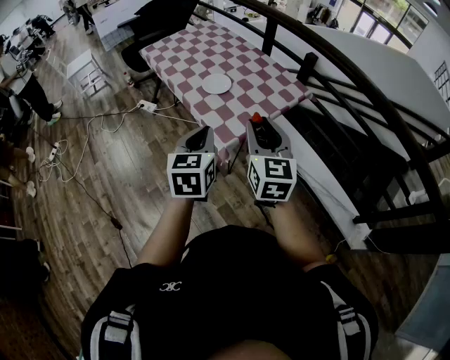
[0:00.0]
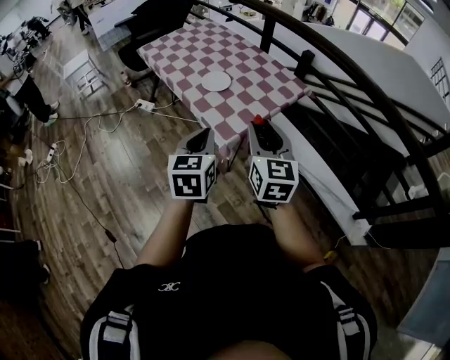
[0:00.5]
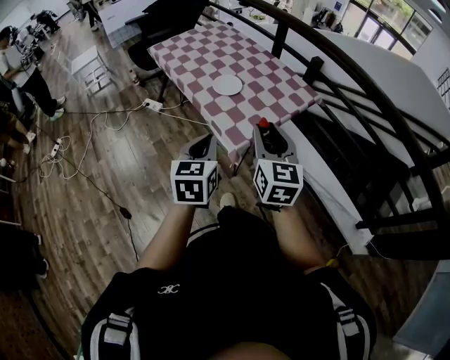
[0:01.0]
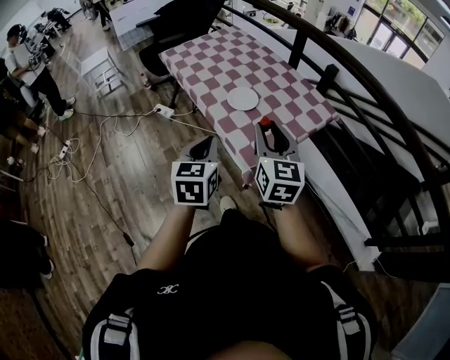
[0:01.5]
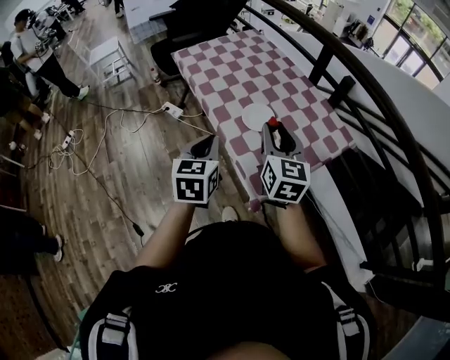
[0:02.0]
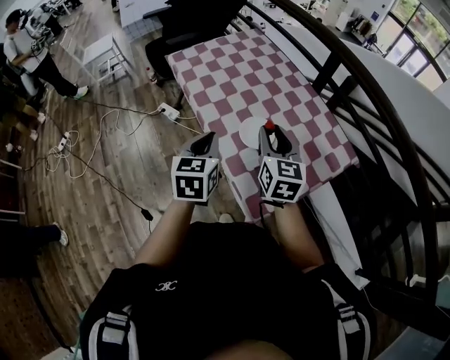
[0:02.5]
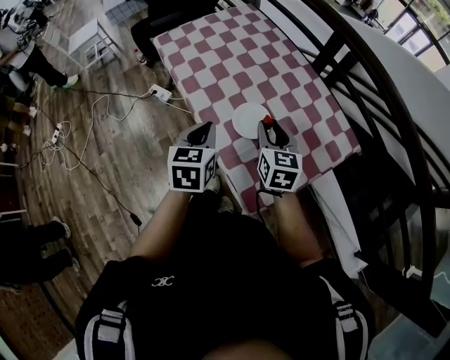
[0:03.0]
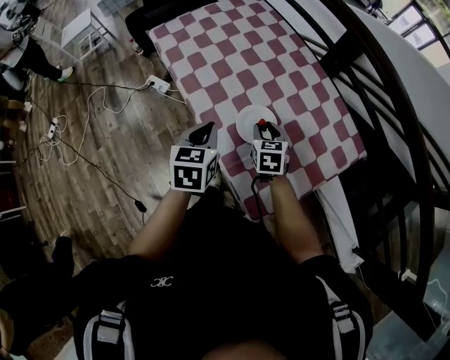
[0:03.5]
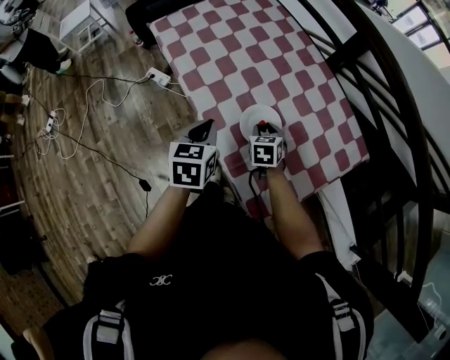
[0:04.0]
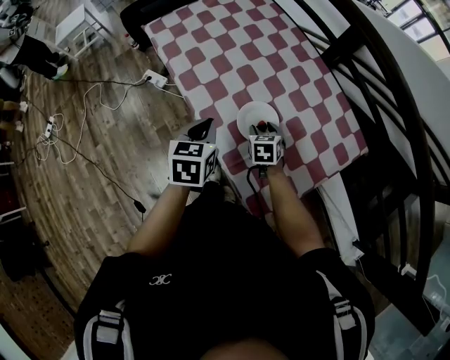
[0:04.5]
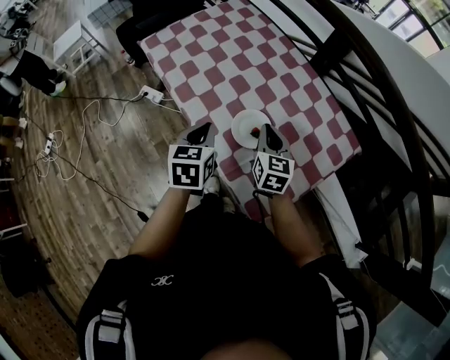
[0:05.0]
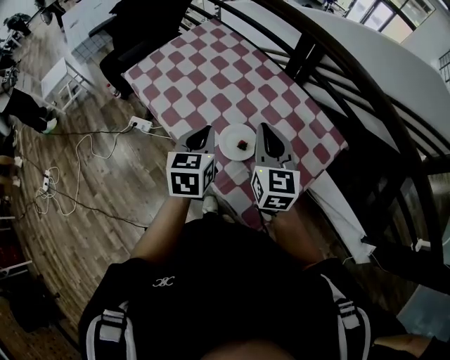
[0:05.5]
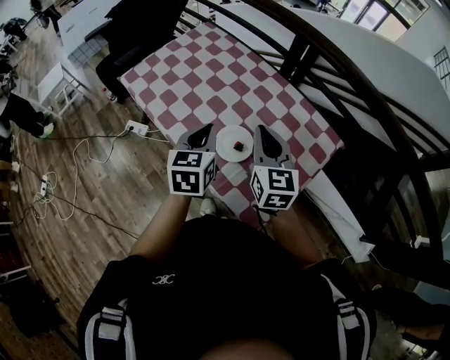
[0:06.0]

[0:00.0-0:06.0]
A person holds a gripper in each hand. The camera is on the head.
0:00.0 to 0:02.0: Both grippers travel together forward and to the left, approximately 25 cm.
0:02.0 to 0:04.0: The right gripper is displaced downward and forward by about 35 cm, and tips its fingers downward by some 40 degrees. The left gripper heads forward and downward, covering roughly 25 cm.
0:04.0 to 0:06.0: The left gripper goes some 10 cm upward and to the right. Meanwhile the right gripper heads upward, covering approximately 25 cm, tilts its fingers approximately 40 degrees upward, and closes up.

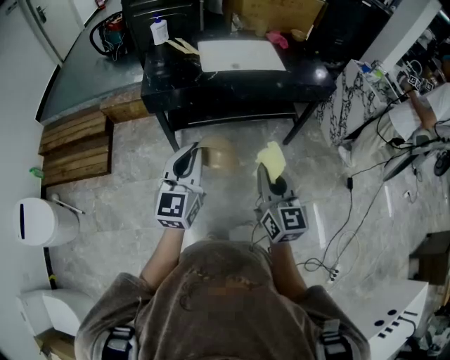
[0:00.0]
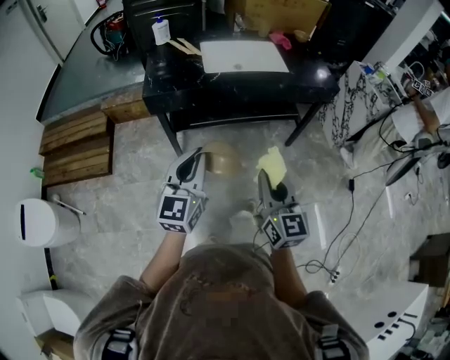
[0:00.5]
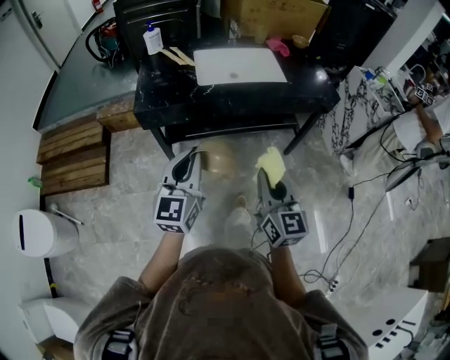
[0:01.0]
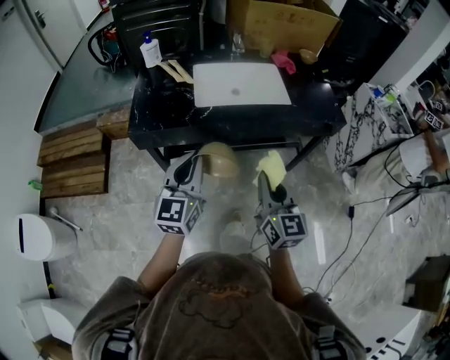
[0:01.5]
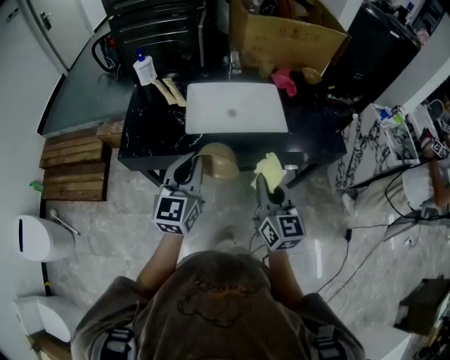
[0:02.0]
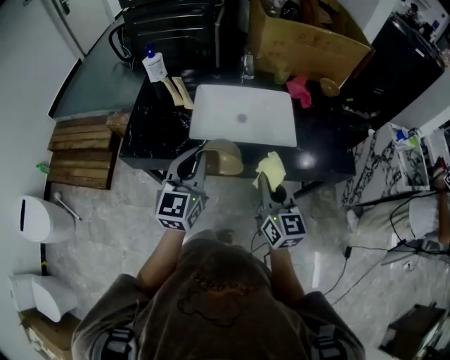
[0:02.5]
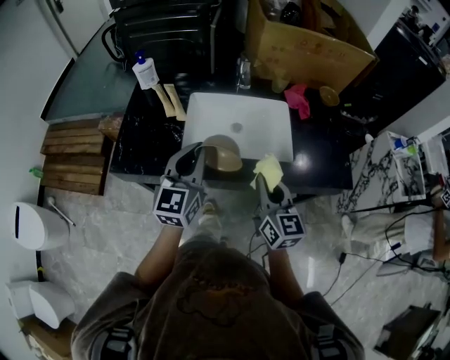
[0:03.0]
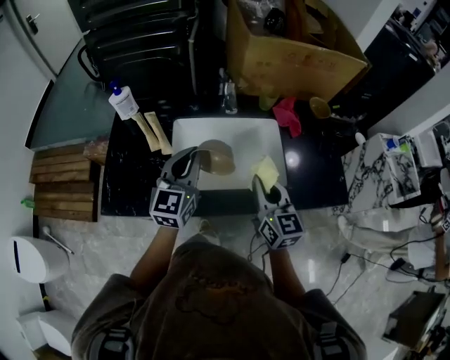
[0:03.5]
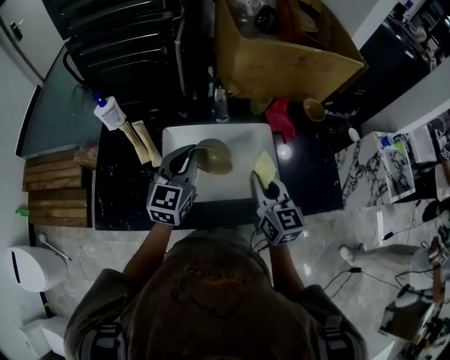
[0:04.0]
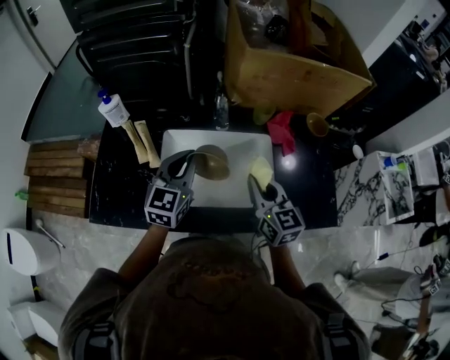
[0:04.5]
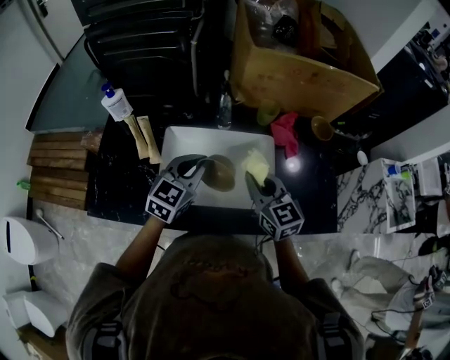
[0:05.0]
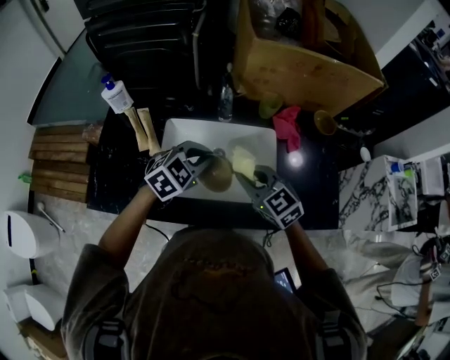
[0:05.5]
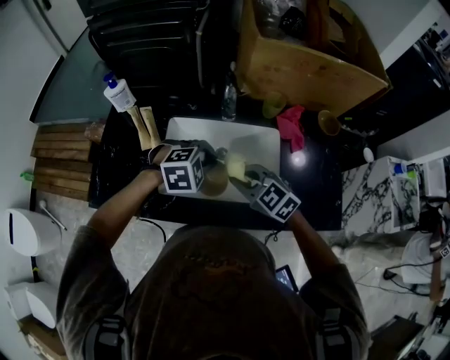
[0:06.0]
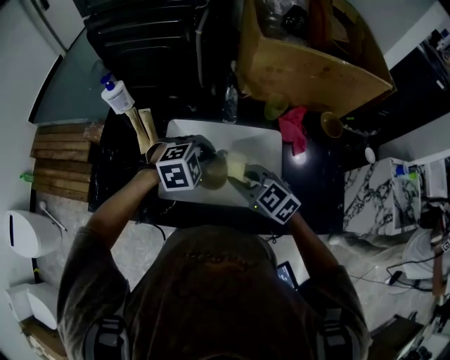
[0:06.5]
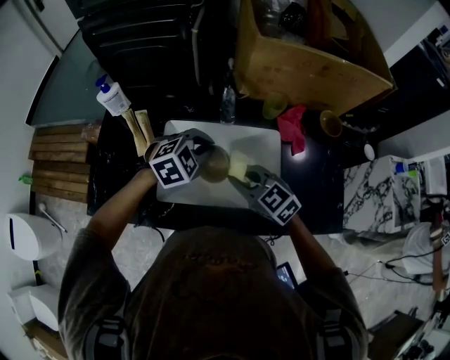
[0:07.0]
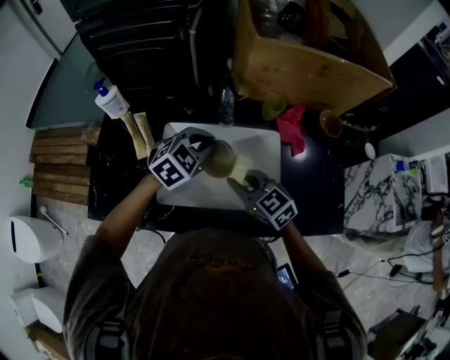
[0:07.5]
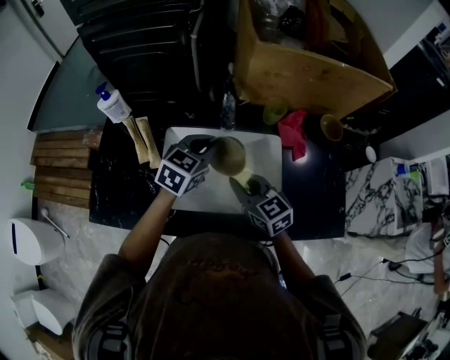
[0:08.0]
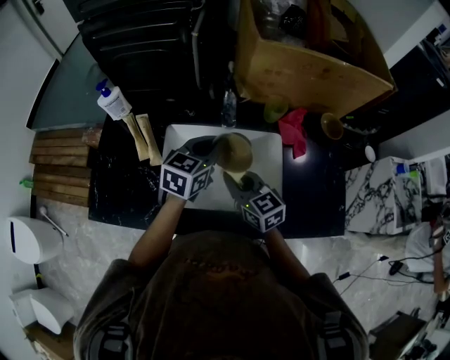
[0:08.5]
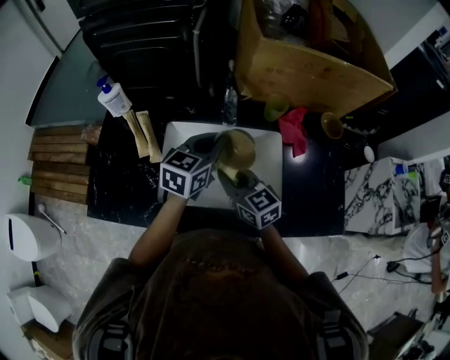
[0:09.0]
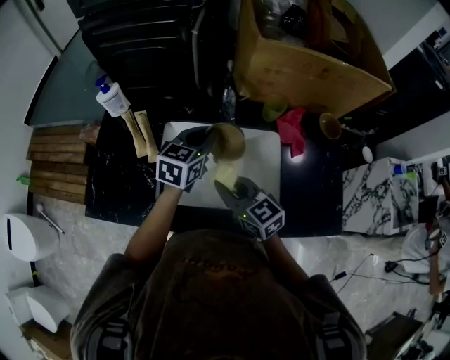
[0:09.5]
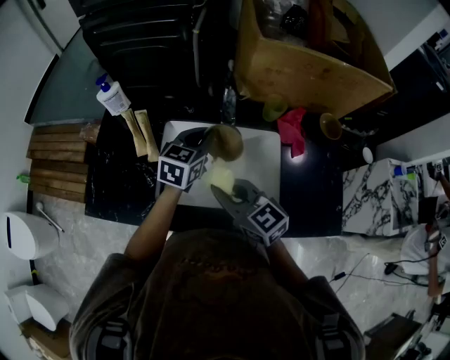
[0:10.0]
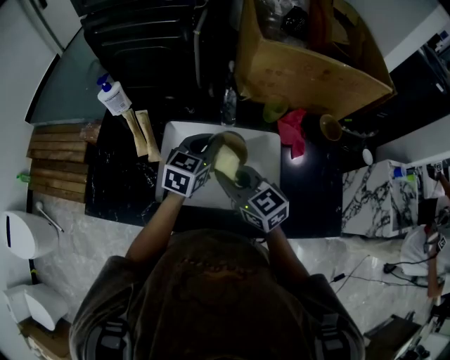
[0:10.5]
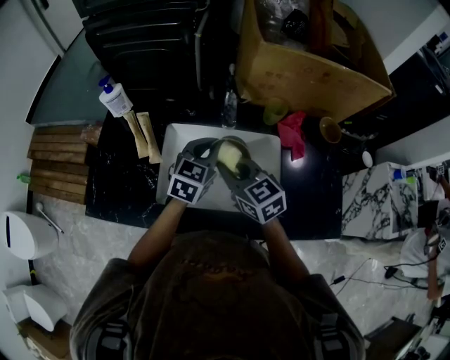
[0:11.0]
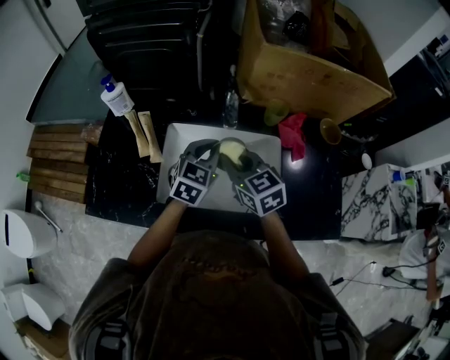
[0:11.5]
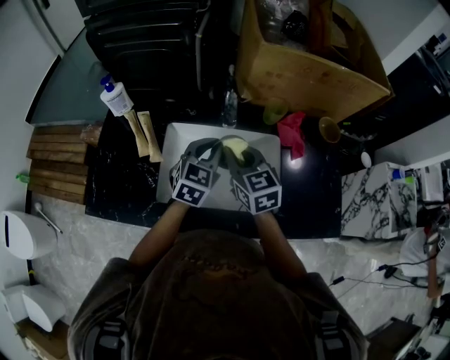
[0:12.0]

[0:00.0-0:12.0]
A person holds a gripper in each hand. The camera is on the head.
0:00.0 to 0:02.0: The two grippers go some 30 cm forward.
0:02.0 to 0:04.0: Both grippers travel together forward, about 30 cm.
0:04.0 to 0:06.0: The right gripper is displaced downward and to the left by approximately 10 cm, and swivels about 60 degrees. Meanwhile the left gripper moves downward and to the right, approximately 10 cm, and angles its fingers downward, by some 50 degrees.
0:06.0 to 0:08.0: The right gripper swivels some 30 degrees, while the left gripper heads forward, covering roughly 10 cm, and changes its angle by roughly 50 degrees.
0:08.0 to 0:10.0: The right gripper heads to the left and upward, covering some 5 cm.
0:10.0 to 0:12.0: The right gripper travels forward by approximately 10 cm, and turns by approximately 20 degrees.

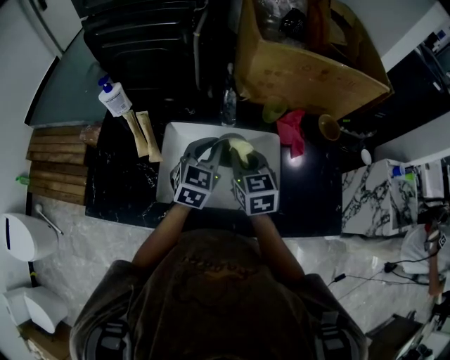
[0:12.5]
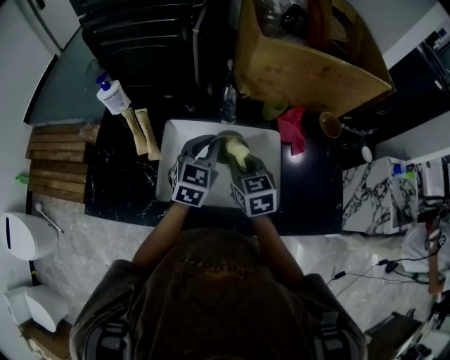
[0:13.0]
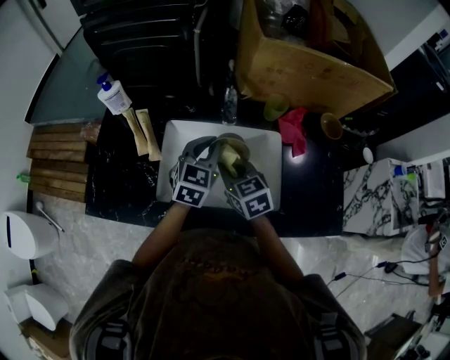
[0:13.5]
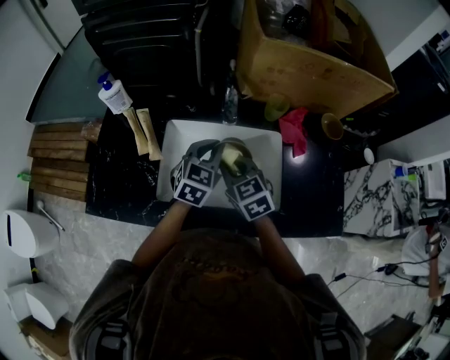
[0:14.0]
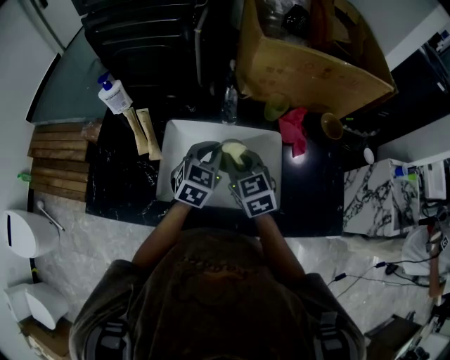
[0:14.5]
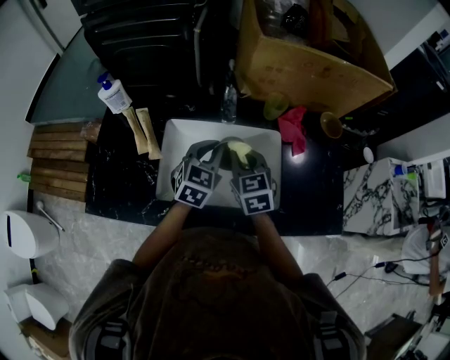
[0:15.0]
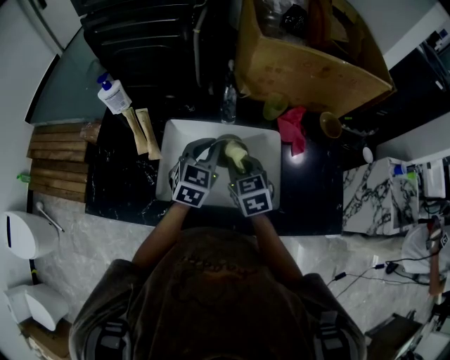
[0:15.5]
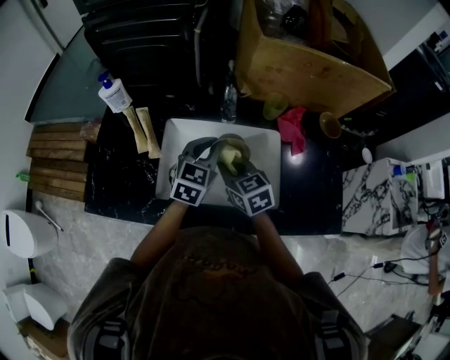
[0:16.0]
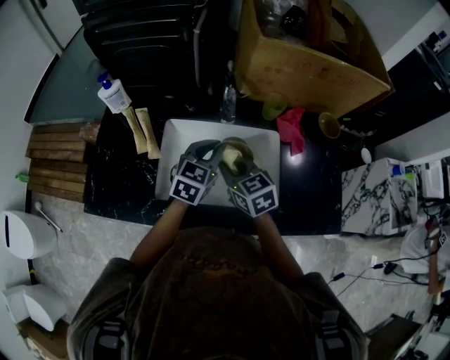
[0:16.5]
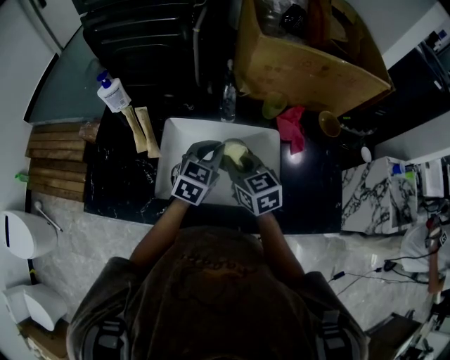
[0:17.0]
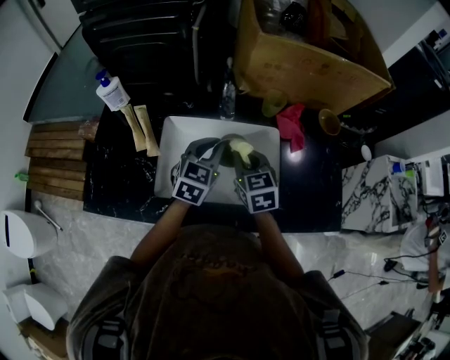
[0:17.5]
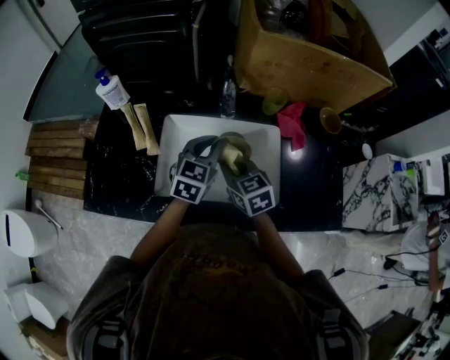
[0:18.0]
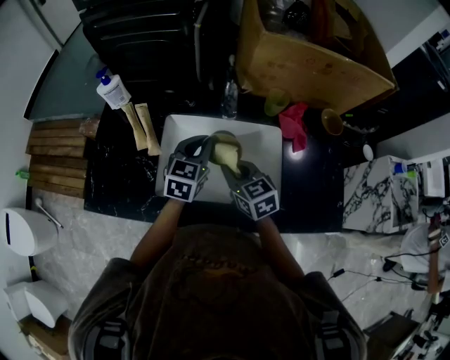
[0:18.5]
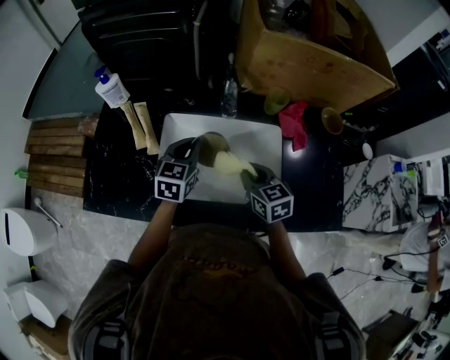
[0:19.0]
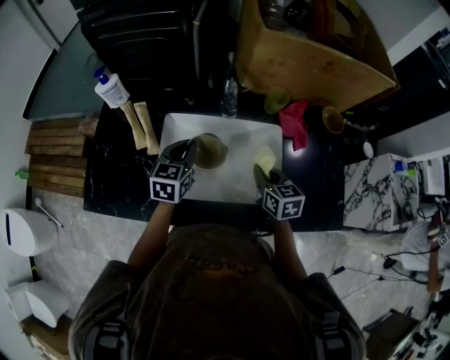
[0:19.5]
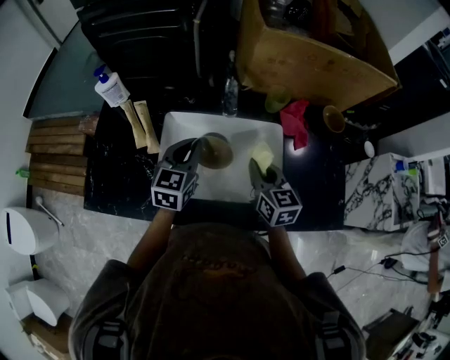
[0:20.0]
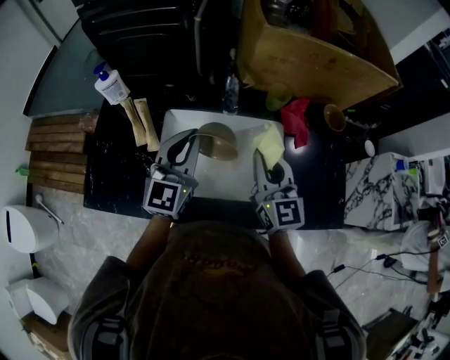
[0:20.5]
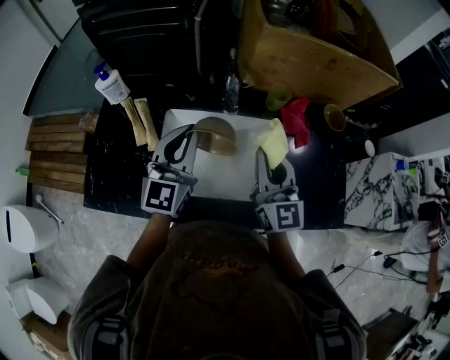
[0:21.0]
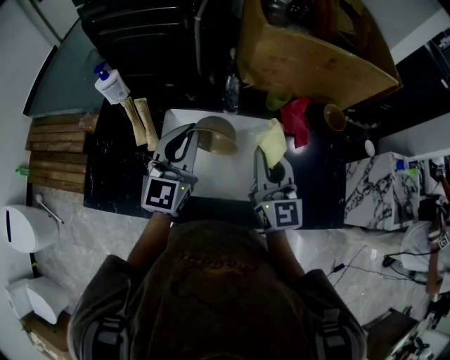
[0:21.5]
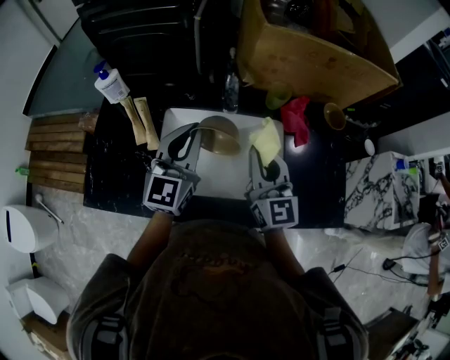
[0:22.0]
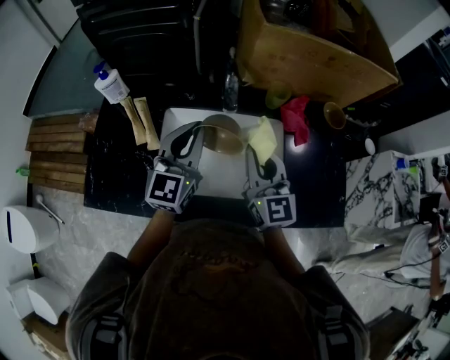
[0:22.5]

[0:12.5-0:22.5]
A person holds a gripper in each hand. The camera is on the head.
0:14.5 to 0:18.5: The grippers make only small movements.
0:18.5 to 0:20.5: The left gripper is displaced upward by some 10 cm, and swivels approximately 30 degrees. The right gripper shifts about 15 cm upward and to the right, and rotates about 30 degrees.
0:20.5 to 0:22.5: The grippers make only small movements.
